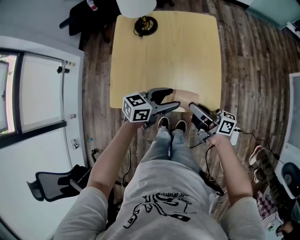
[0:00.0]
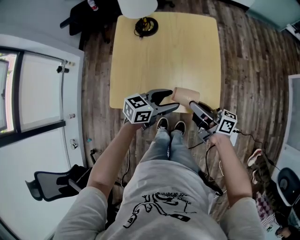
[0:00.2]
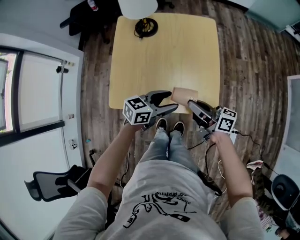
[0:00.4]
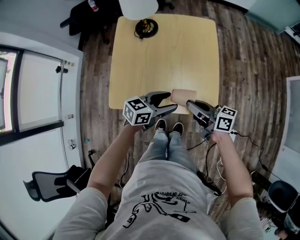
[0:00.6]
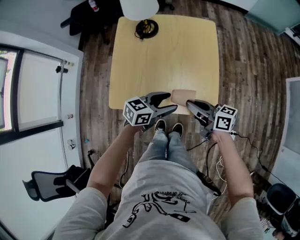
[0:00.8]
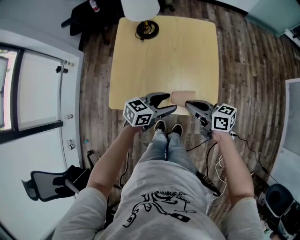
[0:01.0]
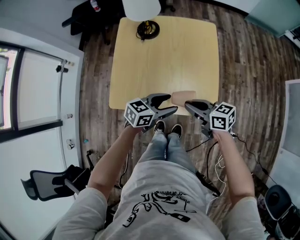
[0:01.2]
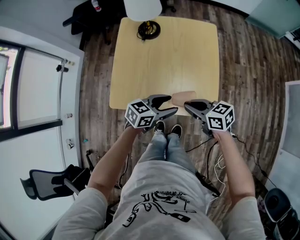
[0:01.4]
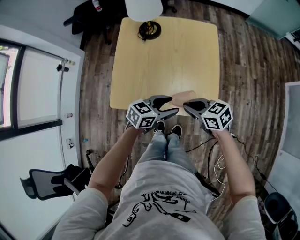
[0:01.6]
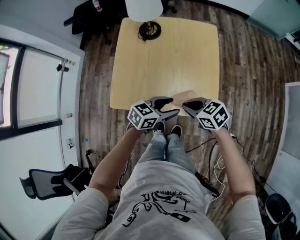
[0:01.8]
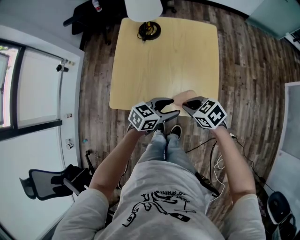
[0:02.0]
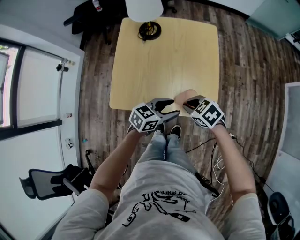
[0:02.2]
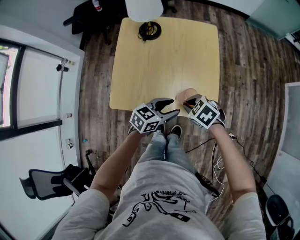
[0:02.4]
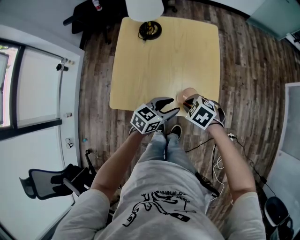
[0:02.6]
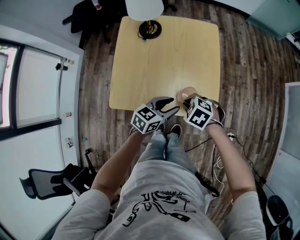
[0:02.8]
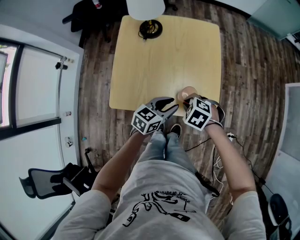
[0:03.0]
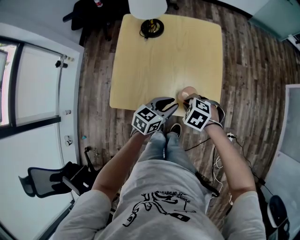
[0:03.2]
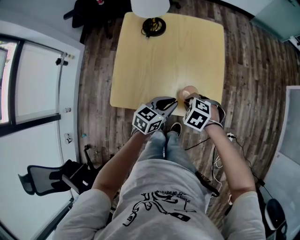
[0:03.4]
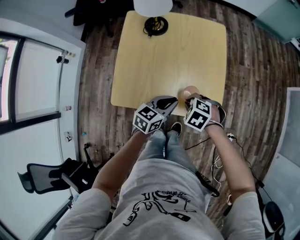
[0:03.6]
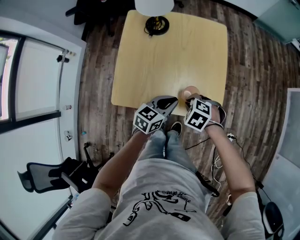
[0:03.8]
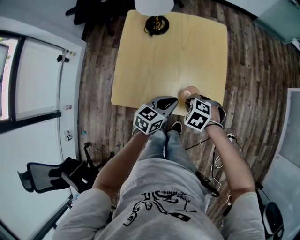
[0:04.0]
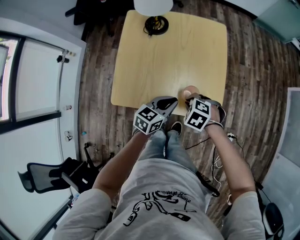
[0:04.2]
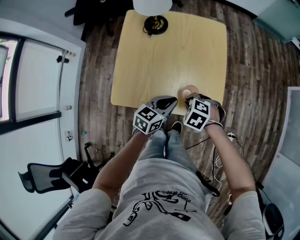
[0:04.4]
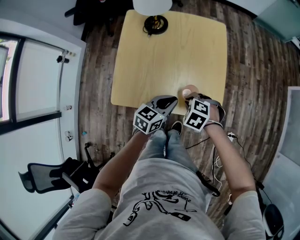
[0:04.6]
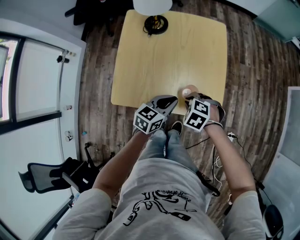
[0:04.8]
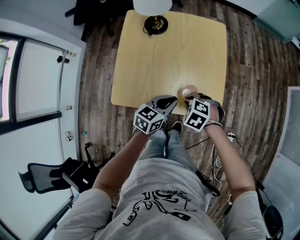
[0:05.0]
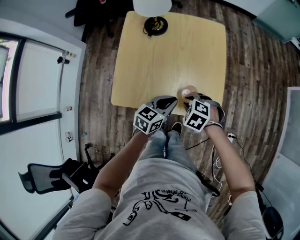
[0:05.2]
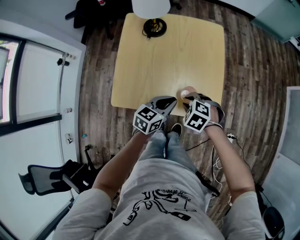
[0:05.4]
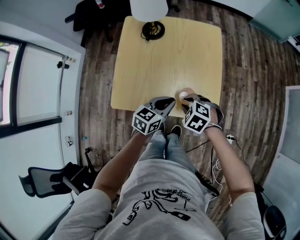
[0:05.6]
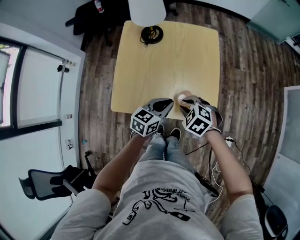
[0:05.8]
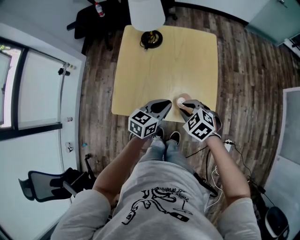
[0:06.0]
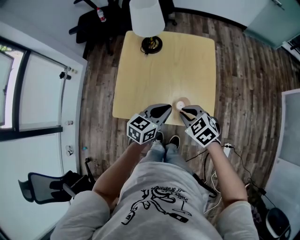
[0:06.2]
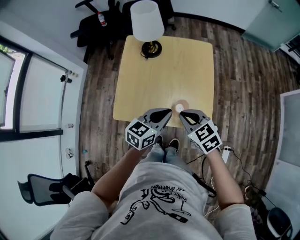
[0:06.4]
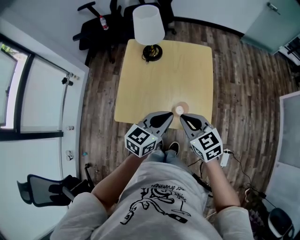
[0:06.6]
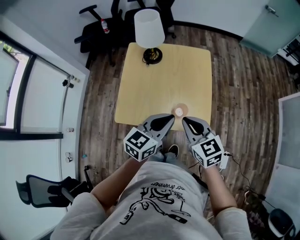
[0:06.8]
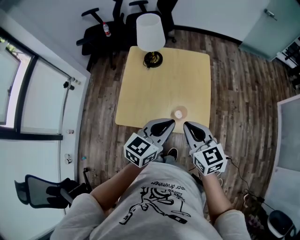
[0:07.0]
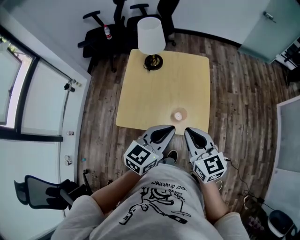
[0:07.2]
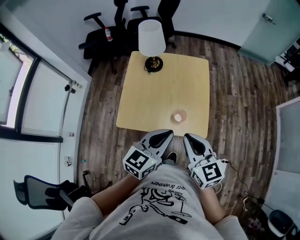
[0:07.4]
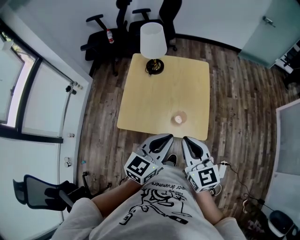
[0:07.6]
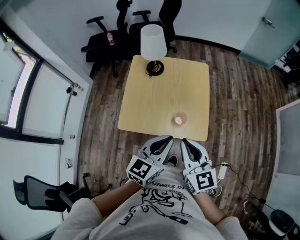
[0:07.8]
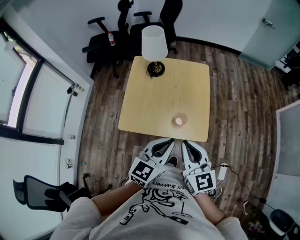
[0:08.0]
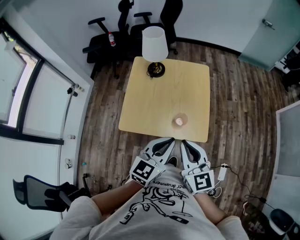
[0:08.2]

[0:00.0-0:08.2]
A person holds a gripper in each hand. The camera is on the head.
0:00.0 to 0:01.6: The right gripper tips its fingers downward by about 50 degrees.
0:01.6 to 0:03.2: The right gripper heads downward, covering about 5 cm, and angles its fingers downward, by roughly 40 degrees, while the left gripper closes up.
0:03.2 to 0:05.0: The grippers make only small movements.
0:05.0 to 0:06.6: The grippers both shift upward by approximately 20 cm. The right gripper angles its fingers upward, by approximately 40 degrees.
0:06.6 to 0:08.2: The right gripper shifts about 15 cm upward and backward, and rotates roughly 30 degrees, while the left gripper moves backward and upward, roughly 10 cm.

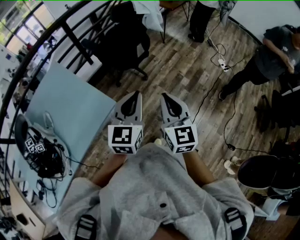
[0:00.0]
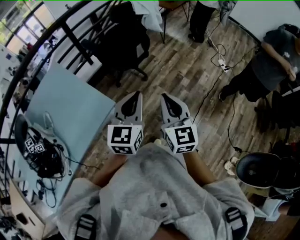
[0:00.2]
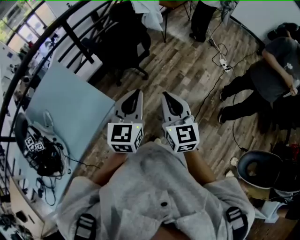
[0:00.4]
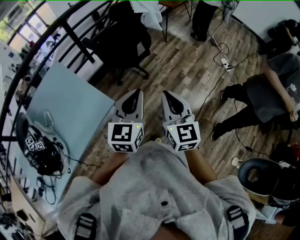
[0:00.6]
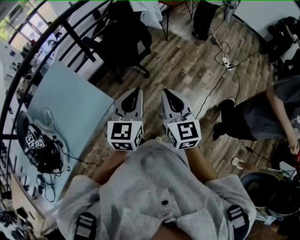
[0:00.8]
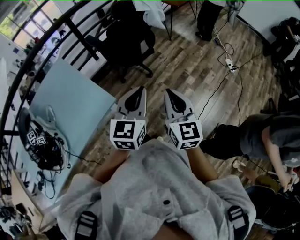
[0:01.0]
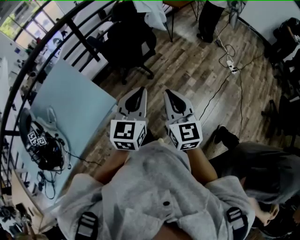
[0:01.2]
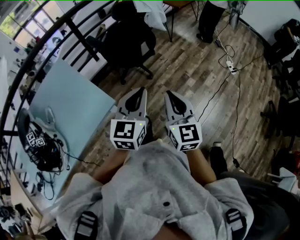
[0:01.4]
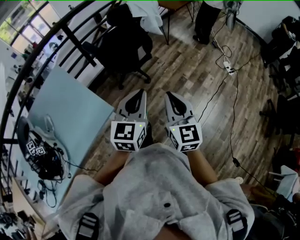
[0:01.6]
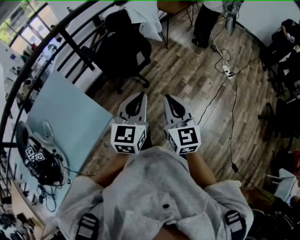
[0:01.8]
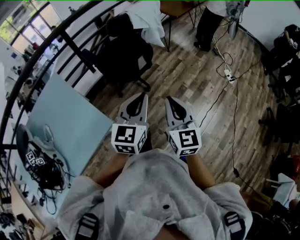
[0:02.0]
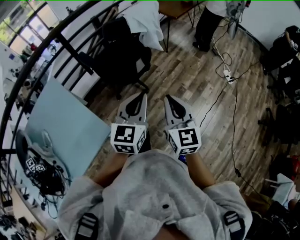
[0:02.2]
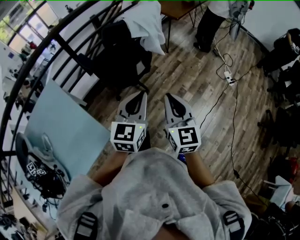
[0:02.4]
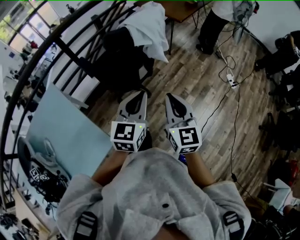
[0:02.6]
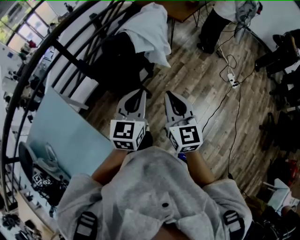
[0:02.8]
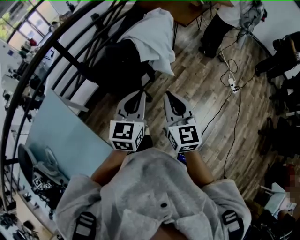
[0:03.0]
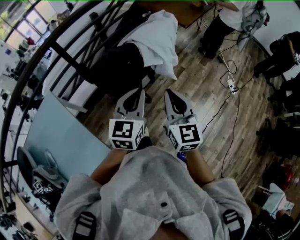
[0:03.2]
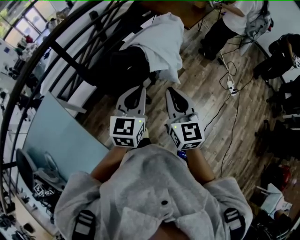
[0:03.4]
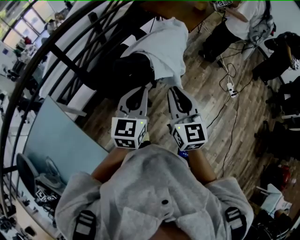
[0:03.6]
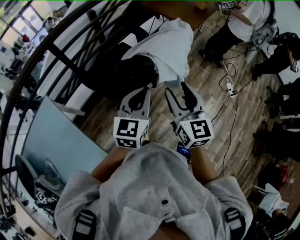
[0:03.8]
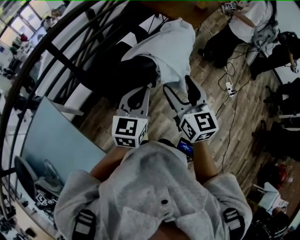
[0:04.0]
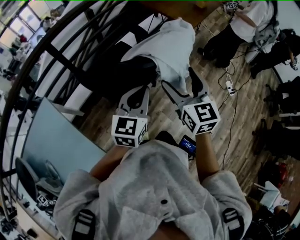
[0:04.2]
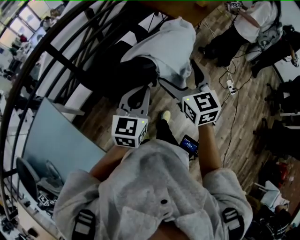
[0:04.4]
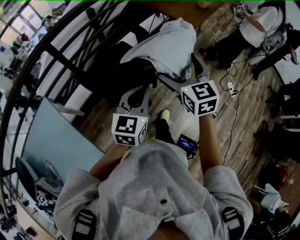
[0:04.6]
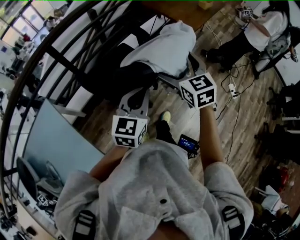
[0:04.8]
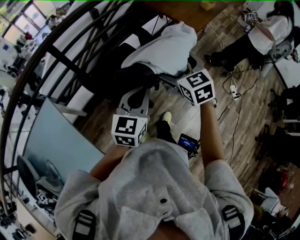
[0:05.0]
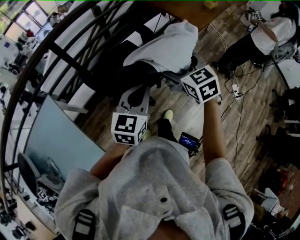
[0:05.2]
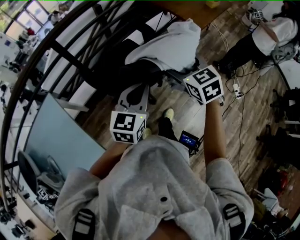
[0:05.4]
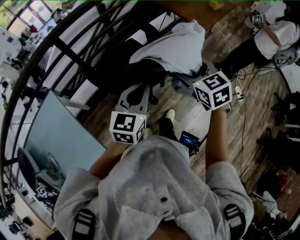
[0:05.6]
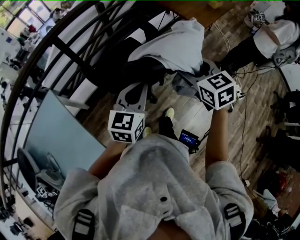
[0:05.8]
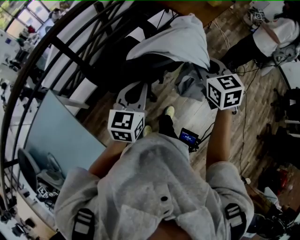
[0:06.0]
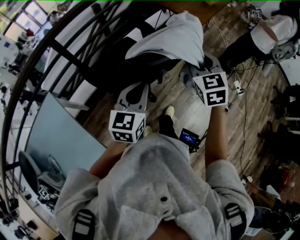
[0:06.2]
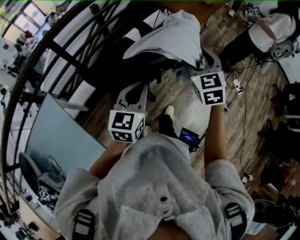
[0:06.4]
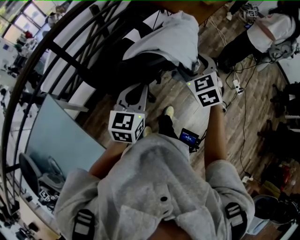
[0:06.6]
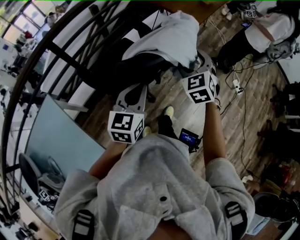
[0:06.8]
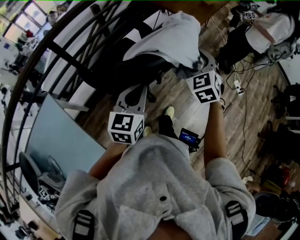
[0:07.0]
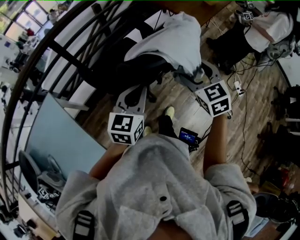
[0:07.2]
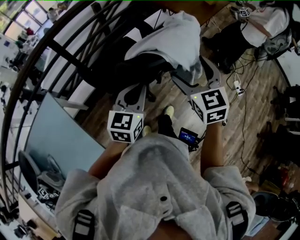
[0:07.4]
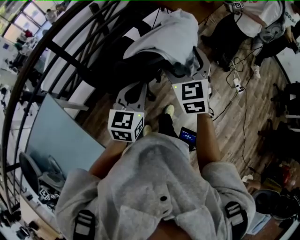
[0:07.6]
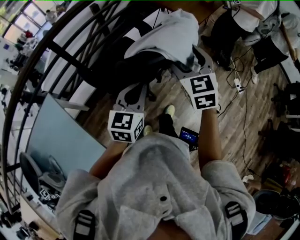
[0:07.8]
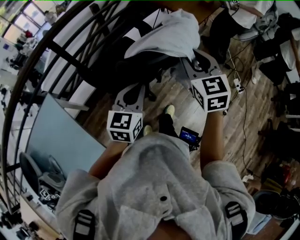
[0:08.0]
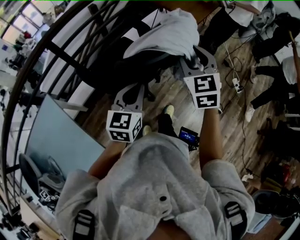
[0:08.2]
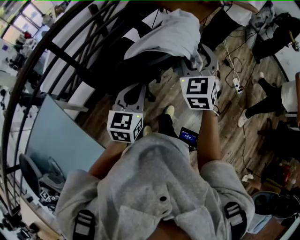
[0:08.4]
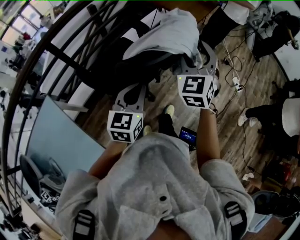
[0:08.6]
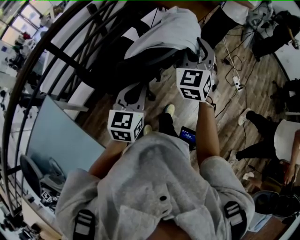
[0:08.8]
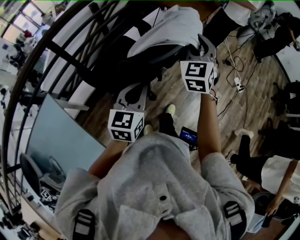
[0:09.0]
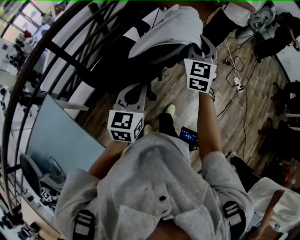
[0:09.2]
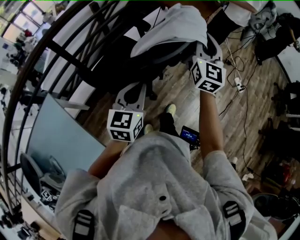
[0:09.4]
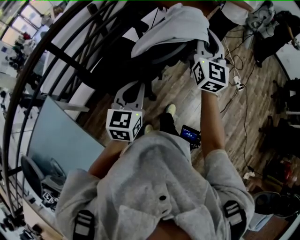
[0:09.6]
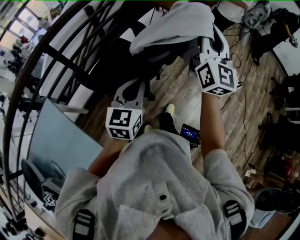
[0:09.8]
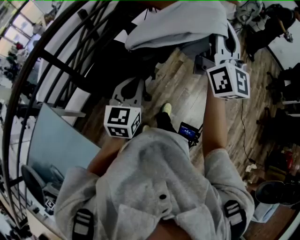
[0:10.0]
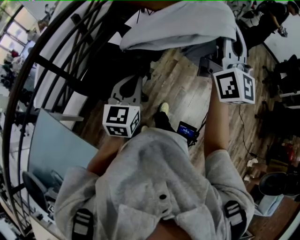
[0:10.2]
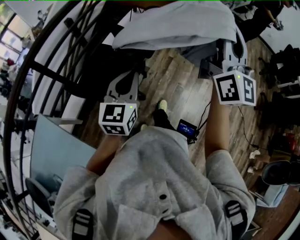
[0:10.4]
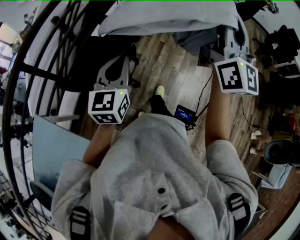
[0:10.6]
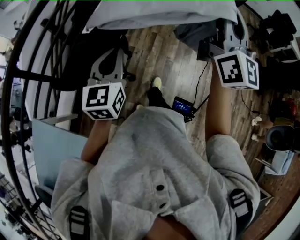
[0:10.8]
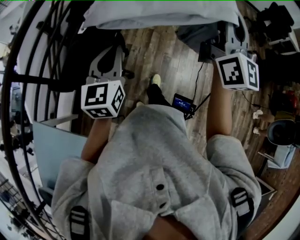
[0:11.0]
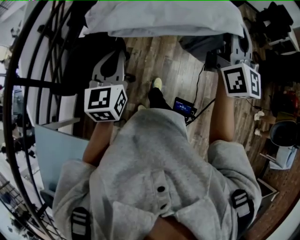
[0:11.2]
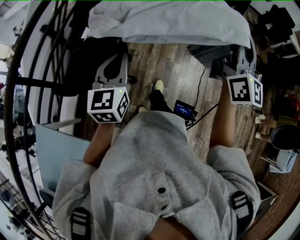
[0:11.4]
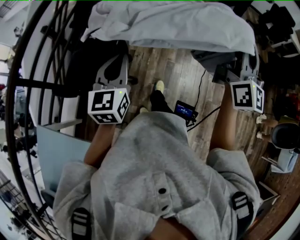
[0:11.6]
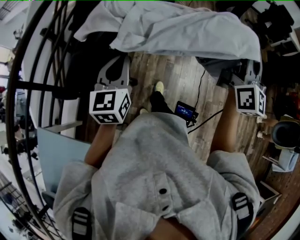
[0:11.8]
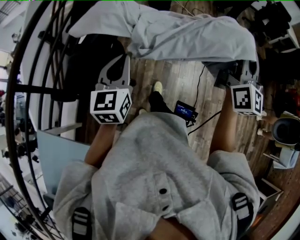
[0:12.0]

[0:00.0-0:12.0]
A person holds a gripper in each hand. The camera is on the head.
0:00.0 to 0:01.6: The right gripper changes place by about 5 cm, while the left gripper heads forward, covering some 5 cm.
0:01.6 to 0:03.0: Both grippers move forward, about 30 cm.
0:03.0 to 0:04.4: The left gripper heads forward, covering some 10 cm. Meanwhile the right gripper shifts approximately 15 cm forward, and opens.
0:04.4 to 0:06.0: The right gripper travels to the right by some 5 cm, and closes.
0:06.0 to 0:07.6: The right gripper changes place by roughly 5 cm, and opens up.
0:07.6 to 0:09.0: The right gripper moves forward, approximately 5 cm, and closes.
0:09.0 to 0:10.4: The right gripper is displaced upward, to the right and backward by approximately 25 cm, and points its fingers about 40 degrees further upward.
0:10.4 to 0:12.0: The right gripper heads to the right, downward and backward, covering about 25 cm, and rotates some 30 degrees. The left gripper shifts roughly 5 cm to the right.

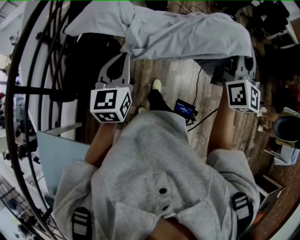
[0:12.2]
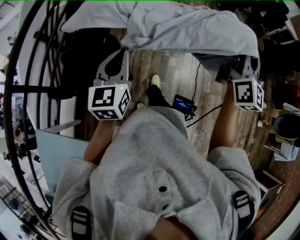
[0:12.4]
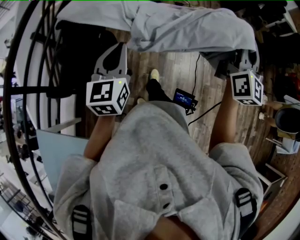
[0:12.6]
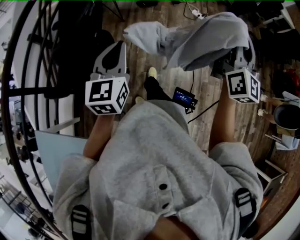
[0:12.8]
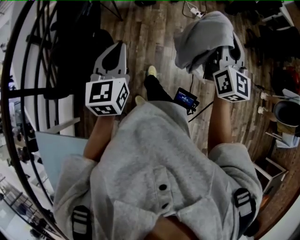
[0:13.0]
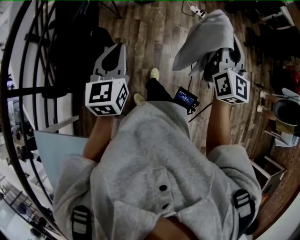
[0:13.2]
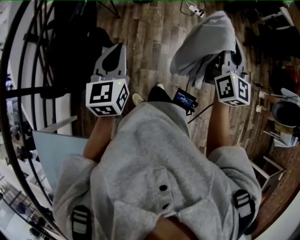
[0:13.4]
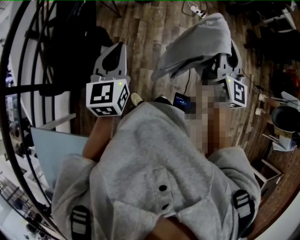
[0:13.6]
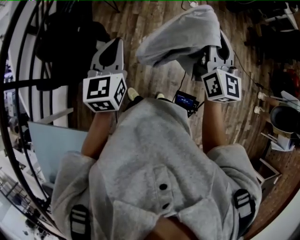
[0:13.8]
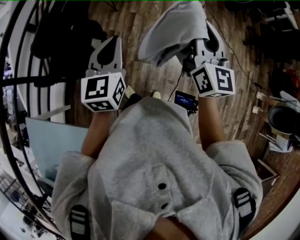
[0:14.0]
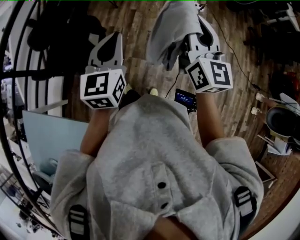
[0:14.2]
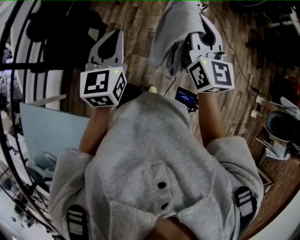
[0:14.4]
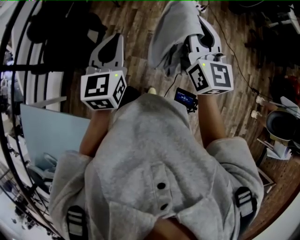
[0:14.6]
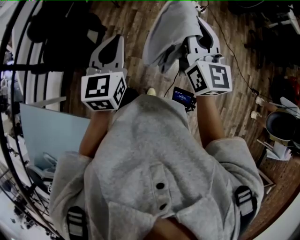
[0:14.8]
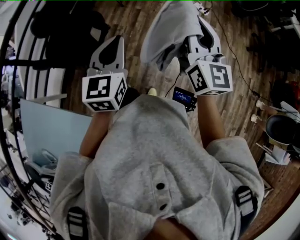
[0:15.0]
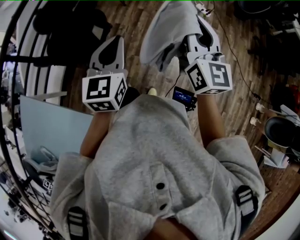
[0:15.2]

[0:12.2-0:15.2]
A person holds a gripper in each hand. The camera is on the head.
0:12.2 to 0:13.8: The left gripper heads to the right, covering about 10 cm, while the right gripper travels downward by some 10 cm.
0:13.8 to 0:15.2: The left gripper is displaced backward and to the right by roughly 10 cm.
